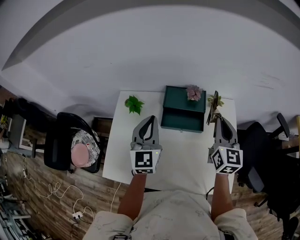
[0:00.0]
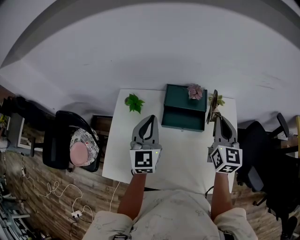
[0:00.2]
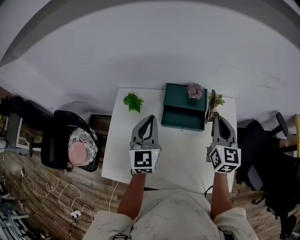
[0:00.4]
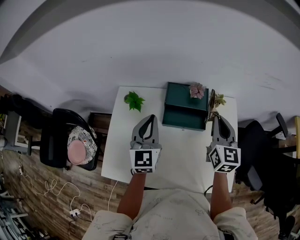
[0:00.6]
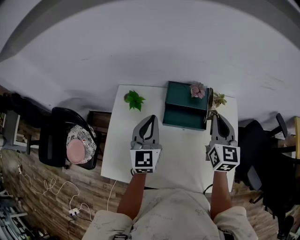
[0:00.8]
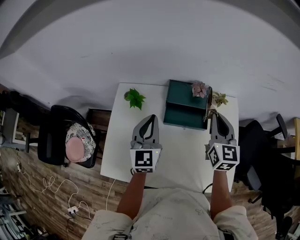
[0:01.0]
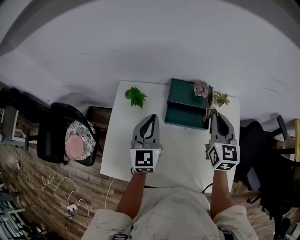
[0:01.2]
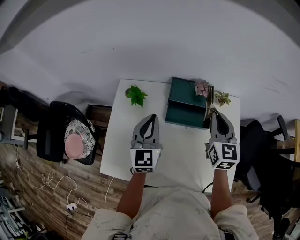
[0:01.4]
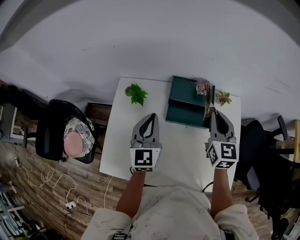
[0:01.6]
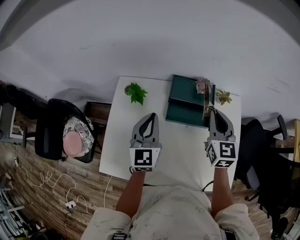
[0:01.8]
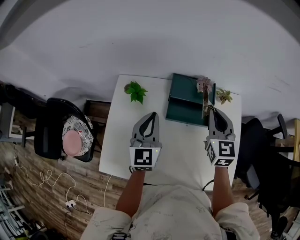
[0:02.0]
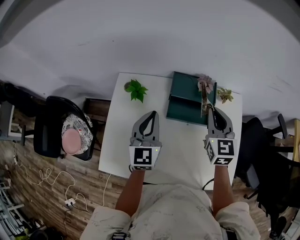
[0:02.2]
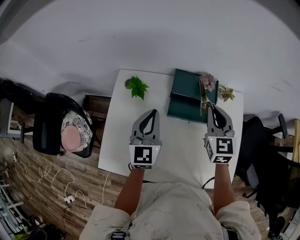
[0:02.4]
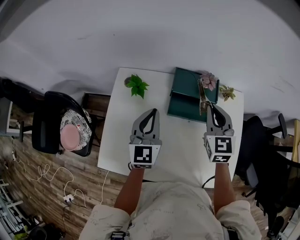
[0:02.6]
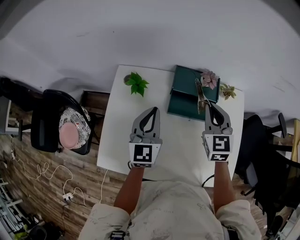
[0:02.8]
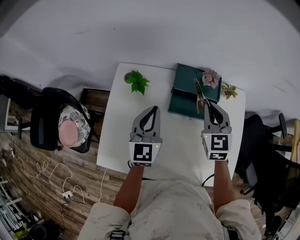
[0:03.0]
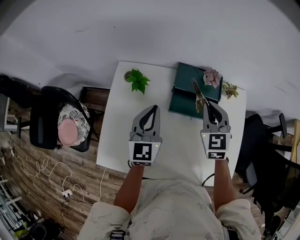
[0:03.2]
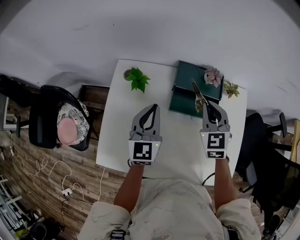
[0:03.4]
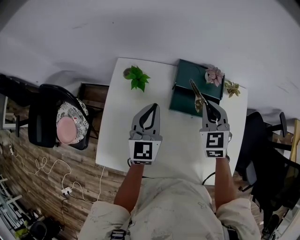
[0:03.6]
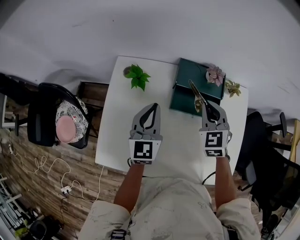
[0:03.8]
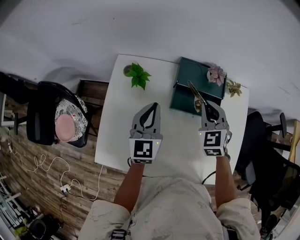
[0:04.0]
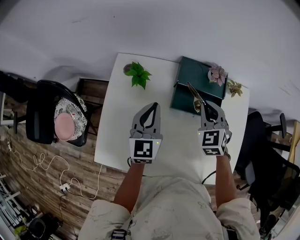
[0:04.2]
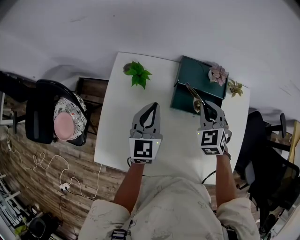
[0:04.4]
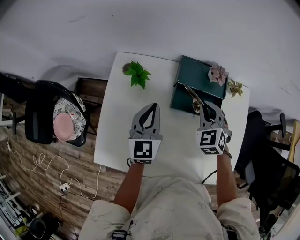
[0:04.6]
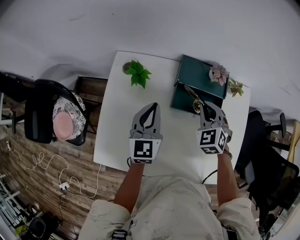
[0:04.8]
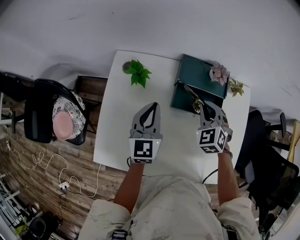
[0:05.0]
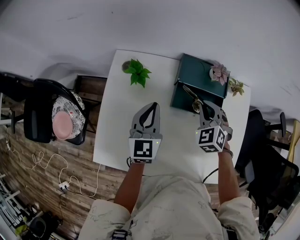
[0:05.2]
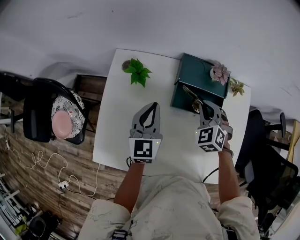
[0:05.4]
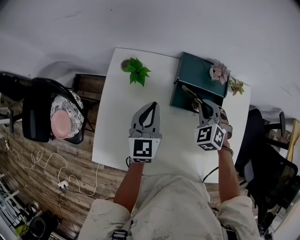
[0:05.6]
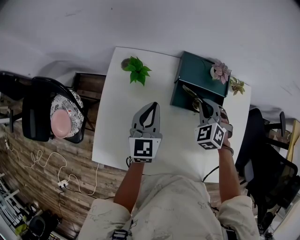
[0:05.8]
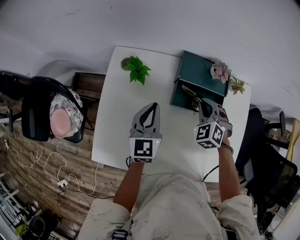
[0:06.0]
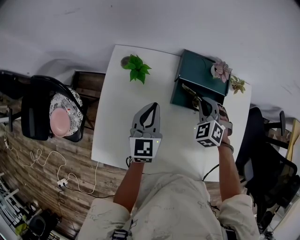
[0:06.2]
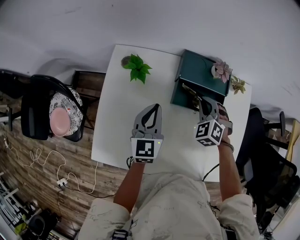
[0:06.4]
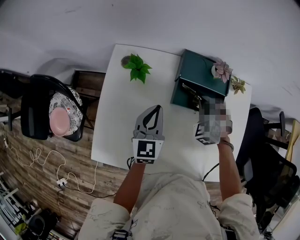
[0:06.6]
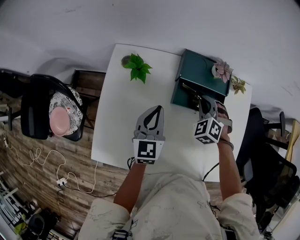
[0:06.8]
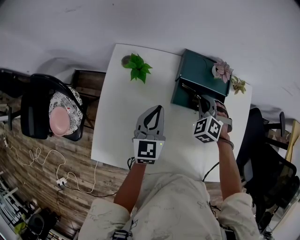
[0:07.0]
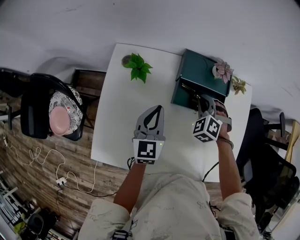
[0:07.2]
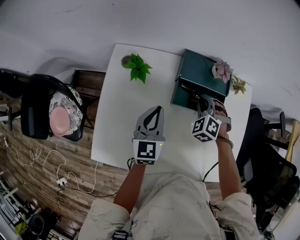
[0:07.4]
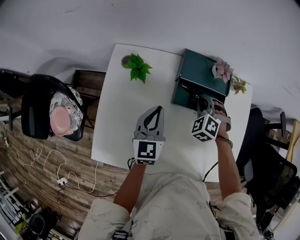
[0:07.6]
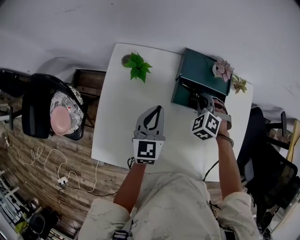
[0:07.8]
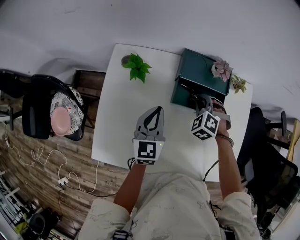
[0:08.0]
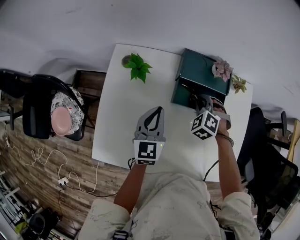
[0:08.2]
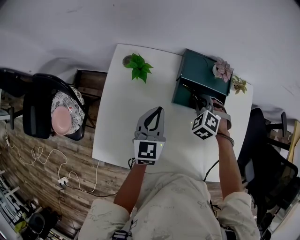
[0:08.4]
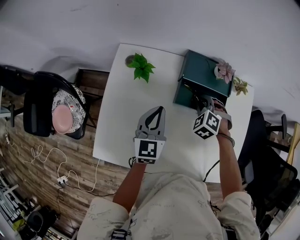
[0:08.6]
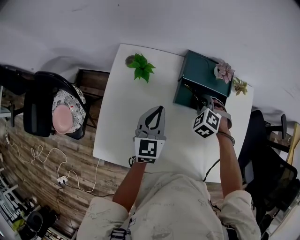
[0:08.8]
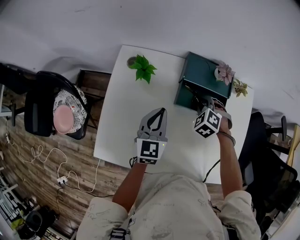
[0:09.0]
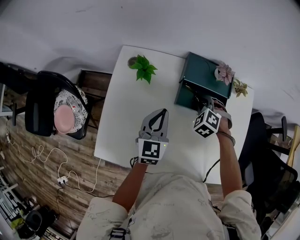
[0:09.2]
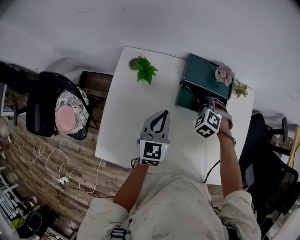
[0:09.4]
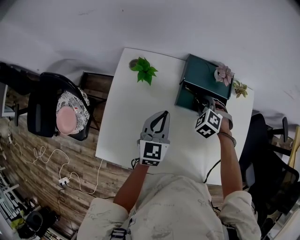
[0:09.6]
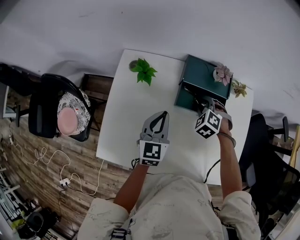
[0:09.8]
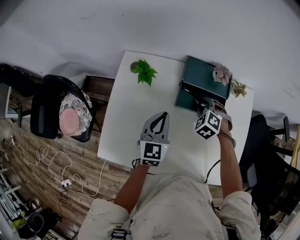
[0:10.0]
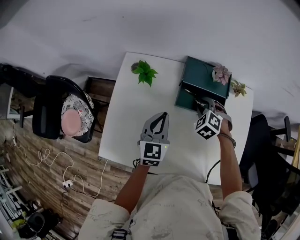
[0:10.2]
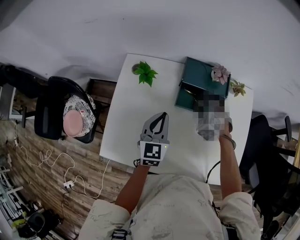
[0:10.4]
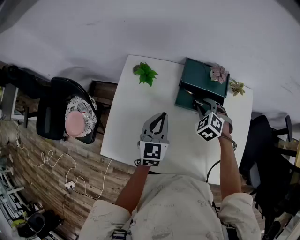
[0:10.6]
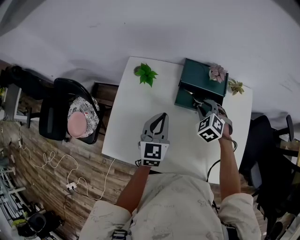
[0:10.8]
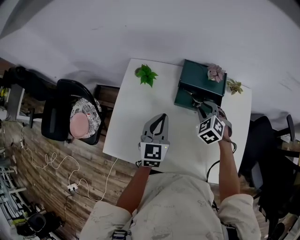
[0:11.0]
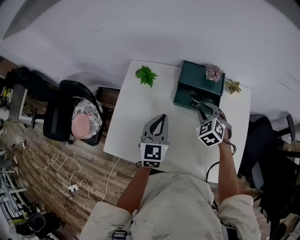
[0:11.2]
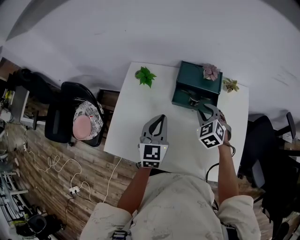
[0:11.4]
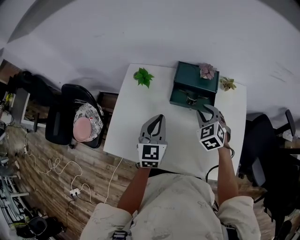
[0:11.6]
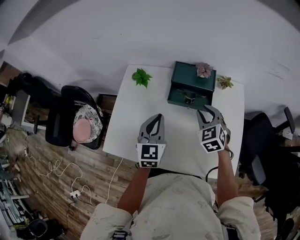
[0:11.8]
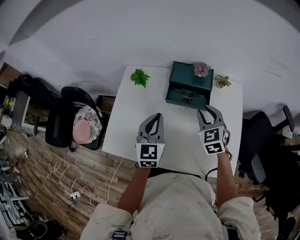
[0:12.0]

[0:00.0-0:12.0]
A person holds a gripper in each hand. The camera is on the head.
0:00.0 to 0:01.6: The right gripper heads to the left, covering roughly 5 cm; the left gripper shifts roughly 5 cm downward.
0:01.6 to 0:03.0: The right gripper moves to the left, some 5 cm.
0:03.0 to 0:04.4: The right gripper moves downward, some 10 cm, and swivels about 20 degrees.
0:04.4 to 0:06.0: The right gripper shifts approximately 5 cm downward.
0:06.0 to 0:10.4: There are only small adjustments of the grippers.
0:10.4 to 0:12.0: The right gripper shifts roughly 15 cm upward, backward and to the right, and rotates some 40 degrees; the left gripper travels backward and upward by approximately 10 cm.

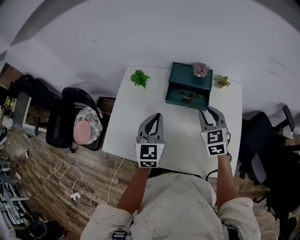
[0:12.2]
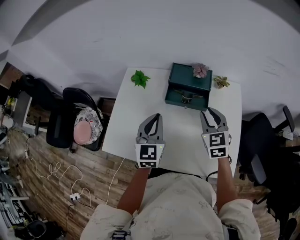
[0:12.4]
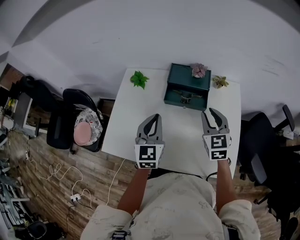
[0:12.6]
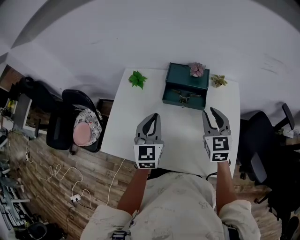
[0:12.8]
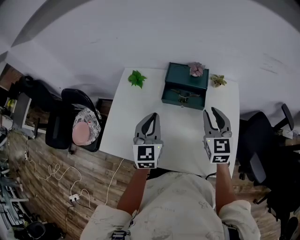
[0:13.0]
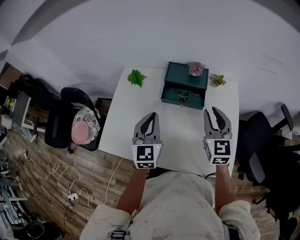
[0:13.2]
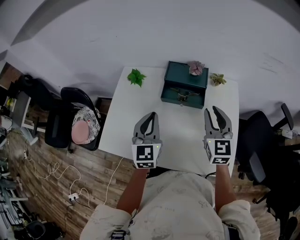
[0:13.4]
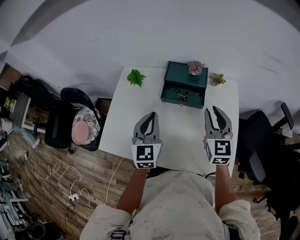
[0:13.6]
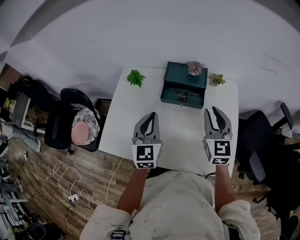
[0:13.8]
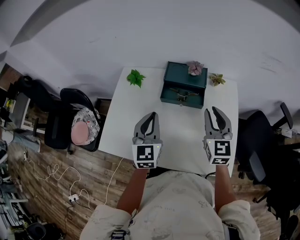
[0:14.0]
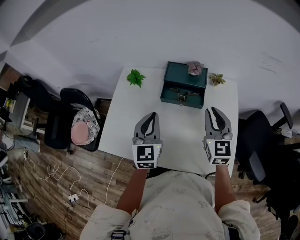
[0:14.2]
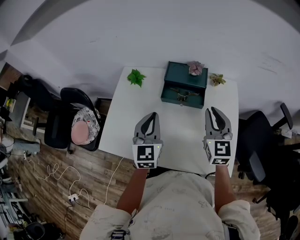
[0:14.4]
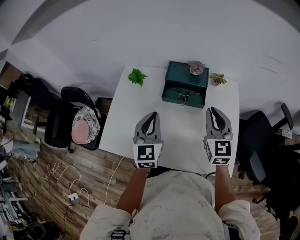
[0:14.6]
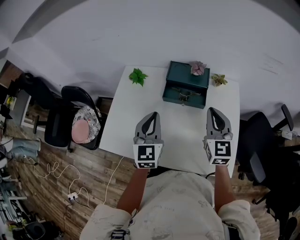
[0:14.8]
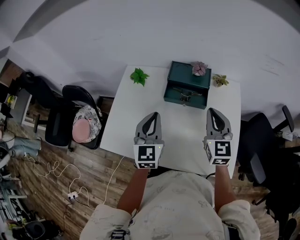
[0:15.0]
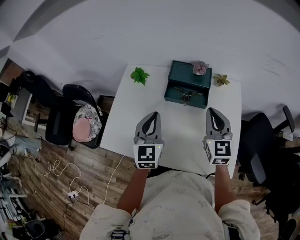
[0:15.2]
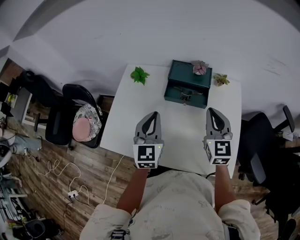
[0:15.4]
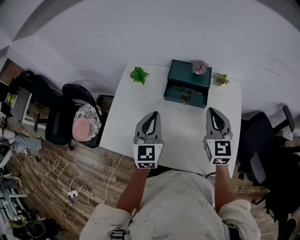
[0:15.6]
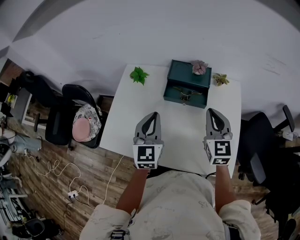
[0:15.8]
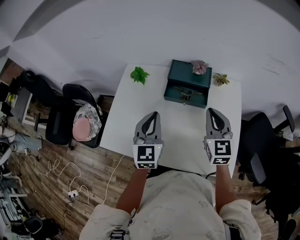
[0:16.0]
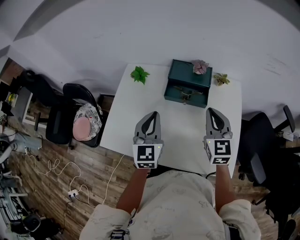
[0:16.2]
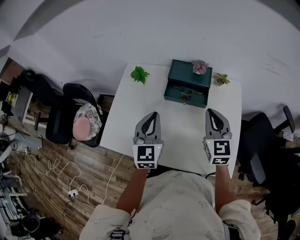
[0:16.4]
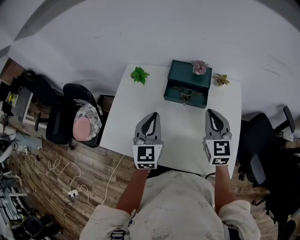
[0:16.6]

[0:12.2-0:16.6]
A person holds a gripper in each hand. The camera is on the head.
0:12.2 to 0:13.6: The right gripper is displaced upward by about 5 cm, and turns by approximately 20 degrees.
0:13.6 to 0:15.2: The right gripper closes up.
0:15.2 to 0:16.6: Neither gripper changes place.

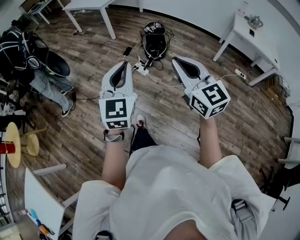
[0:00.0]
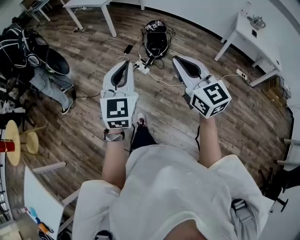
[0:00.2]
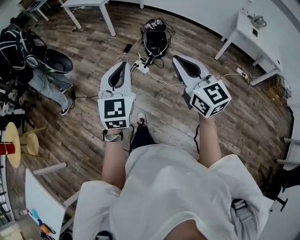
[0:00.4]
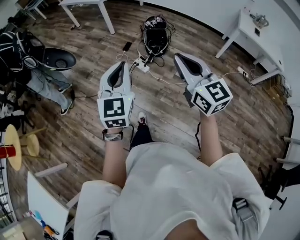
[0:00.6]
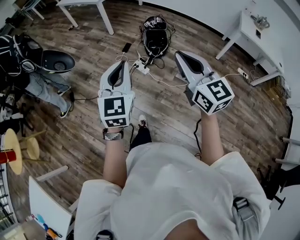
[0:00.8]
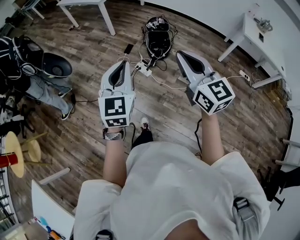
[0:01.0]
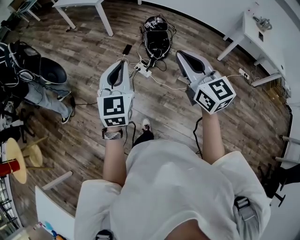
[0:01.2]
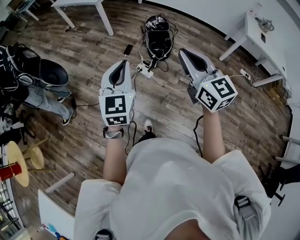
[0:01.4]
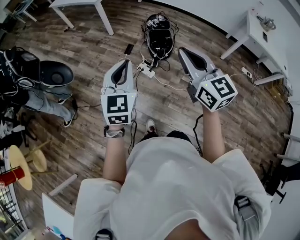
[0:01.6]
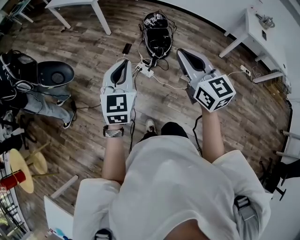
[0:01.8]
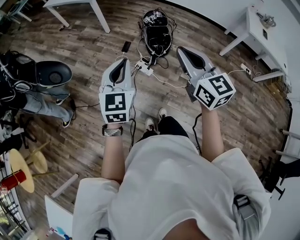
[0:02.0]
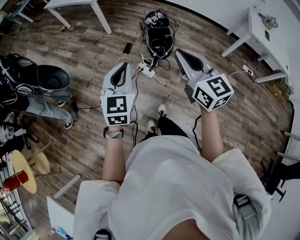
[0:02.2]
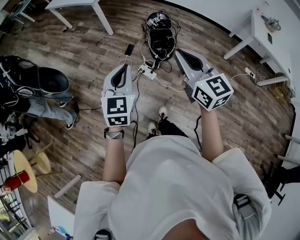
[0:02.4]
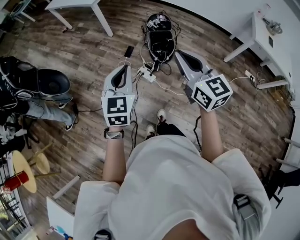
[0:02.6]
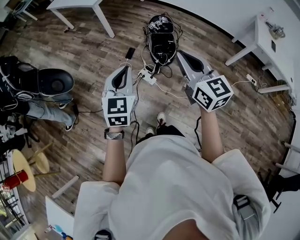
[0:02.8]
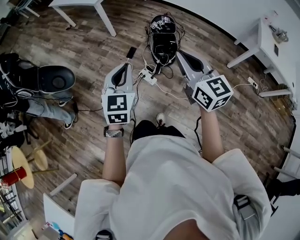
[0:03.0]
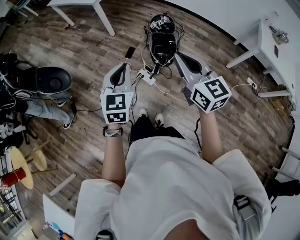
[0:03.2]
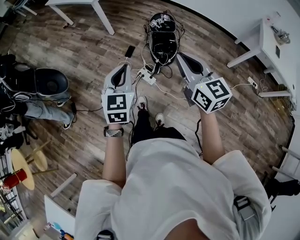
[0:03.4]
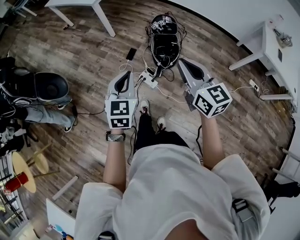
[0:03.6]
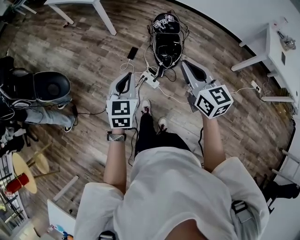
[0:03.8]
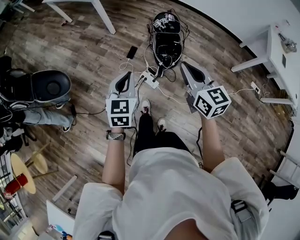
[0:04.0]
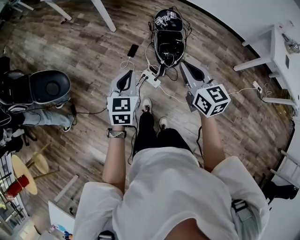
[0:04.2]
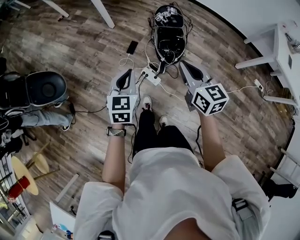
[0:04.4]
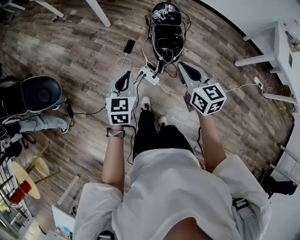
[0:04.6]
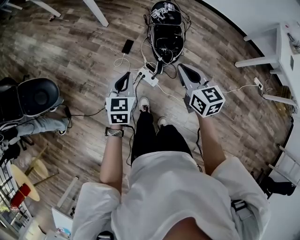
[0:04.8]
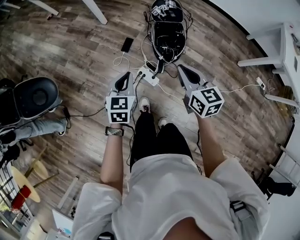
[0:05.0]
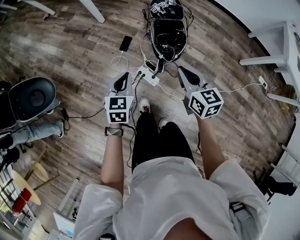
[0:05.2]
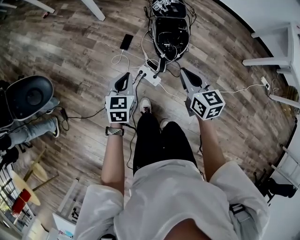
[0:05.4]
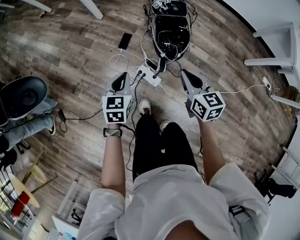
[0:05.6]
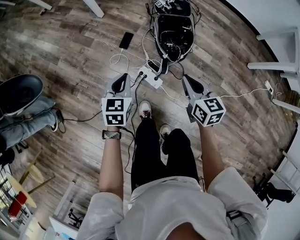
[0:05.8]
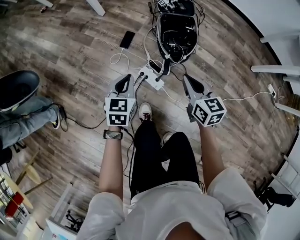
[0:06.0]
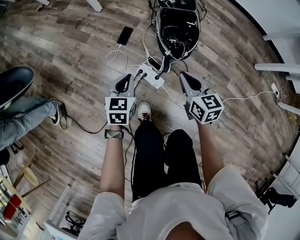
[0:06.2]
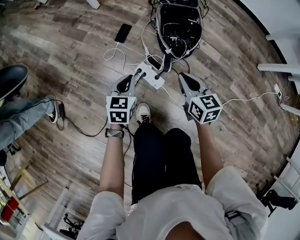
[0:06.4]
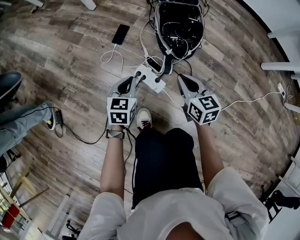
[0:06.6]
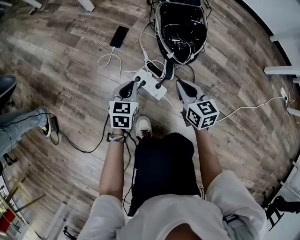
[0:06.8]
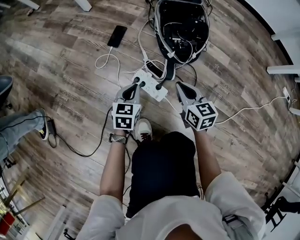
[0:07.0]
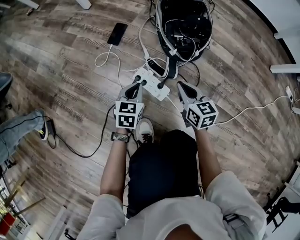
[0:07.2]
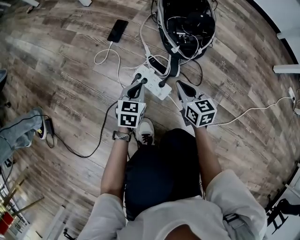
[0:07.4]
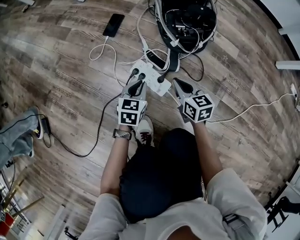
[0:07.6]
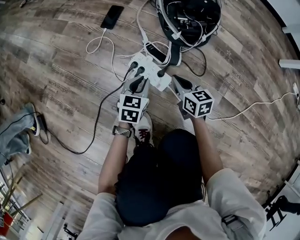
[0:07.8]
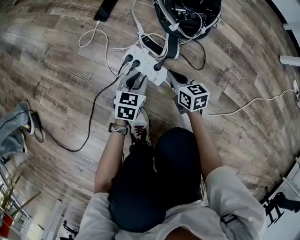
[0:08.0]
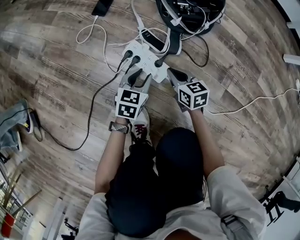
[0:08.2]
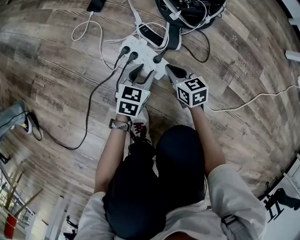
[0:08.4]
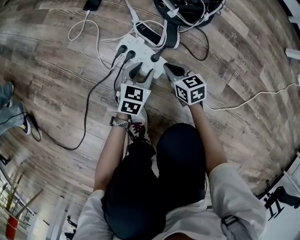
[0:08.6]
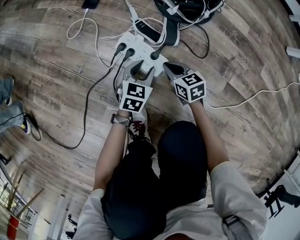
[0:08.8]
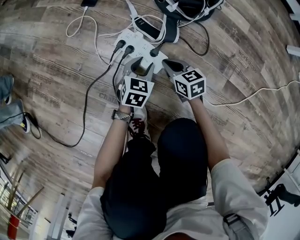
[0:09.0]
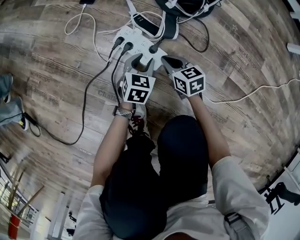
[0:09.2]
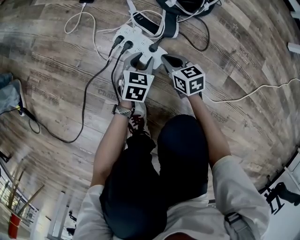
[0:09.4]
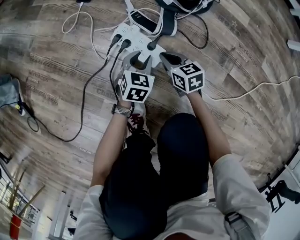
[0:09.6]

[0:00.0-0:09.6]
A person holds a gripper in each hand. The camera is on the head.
0:00.0 to 0:01.6: The grippers both shift forward by roughly 30 cm.
0:01.6 to 0:03.2: The two grippers go some 15 cm forward.
0:03.2 to 0:04.8: Both grippers travel together downward and forward, approximately 30 cm.
0:04.8 to 0:06.4: The two grippers go about 40 cm downward.
0:06.4 to 0:08.0: The two grippers go approximately 35 cm downward.
0:08.0 to 0:09.6: Both grippers travel together downward, about 5 cm.
